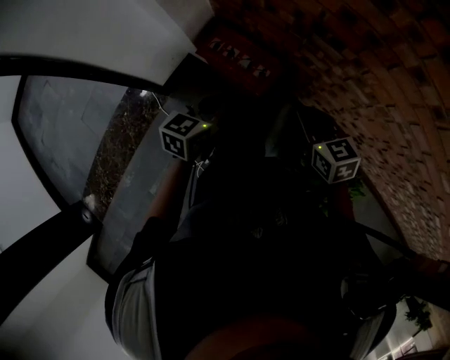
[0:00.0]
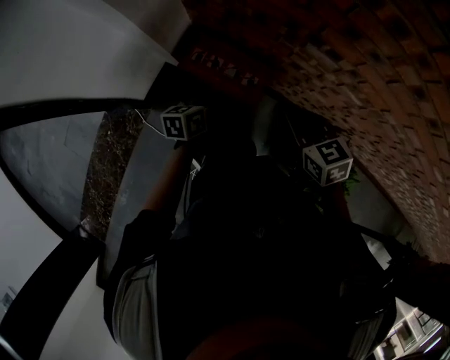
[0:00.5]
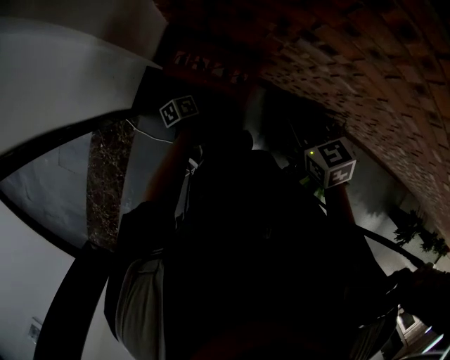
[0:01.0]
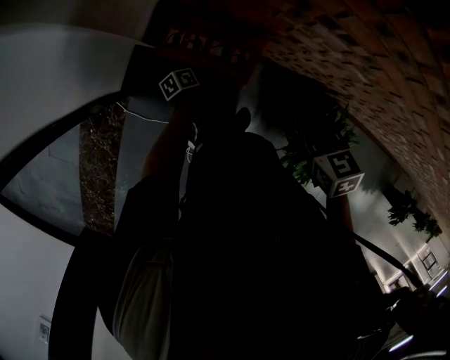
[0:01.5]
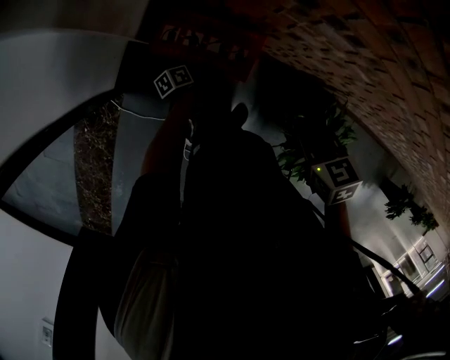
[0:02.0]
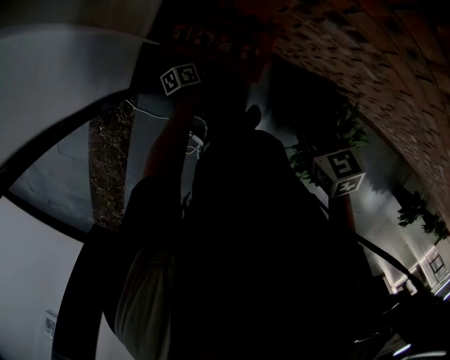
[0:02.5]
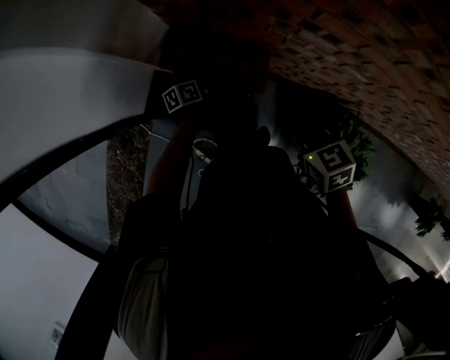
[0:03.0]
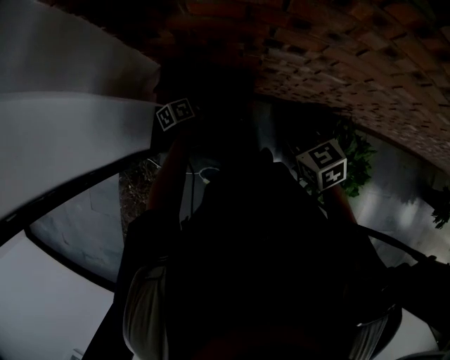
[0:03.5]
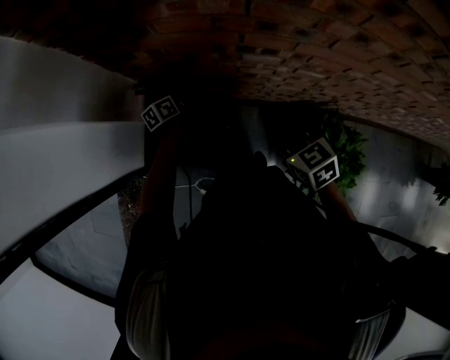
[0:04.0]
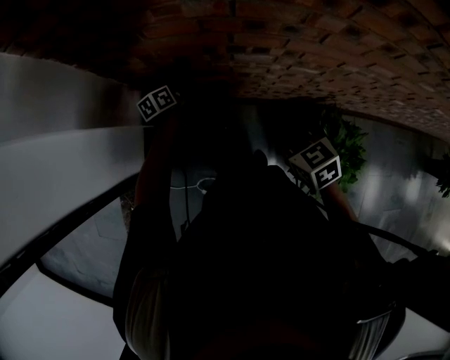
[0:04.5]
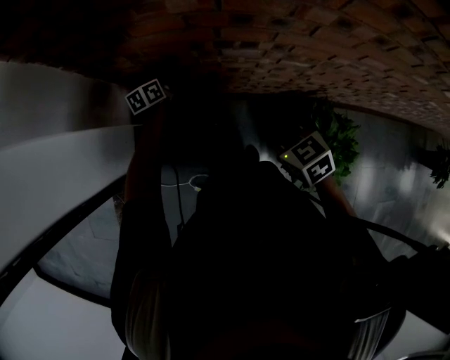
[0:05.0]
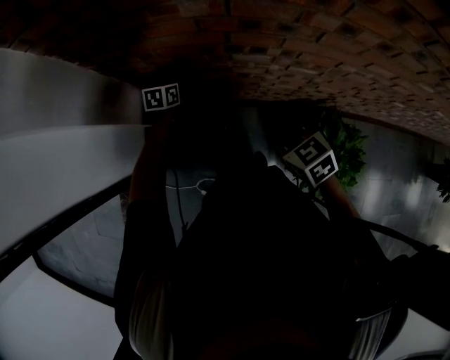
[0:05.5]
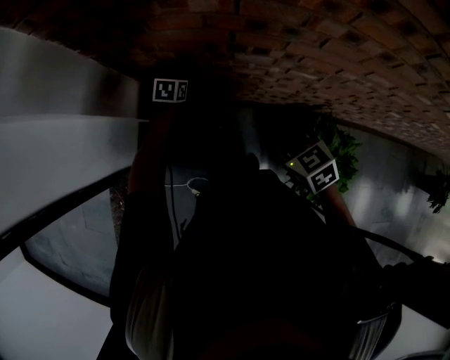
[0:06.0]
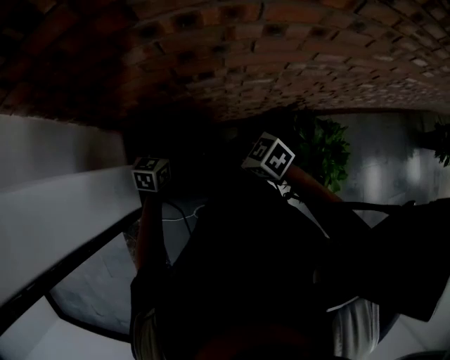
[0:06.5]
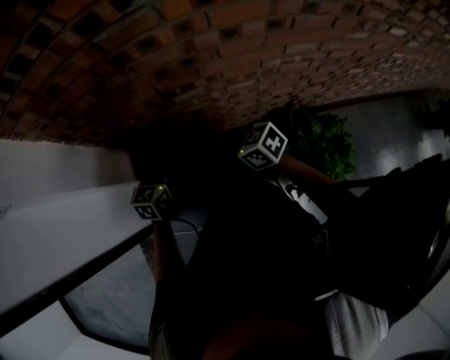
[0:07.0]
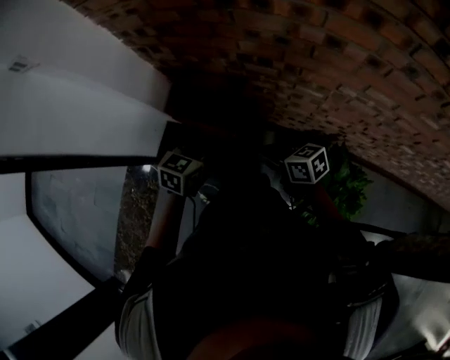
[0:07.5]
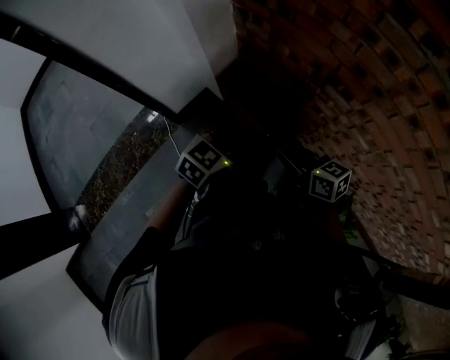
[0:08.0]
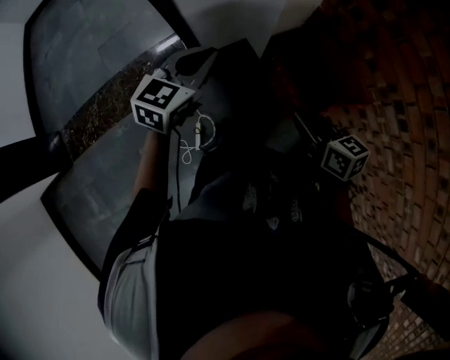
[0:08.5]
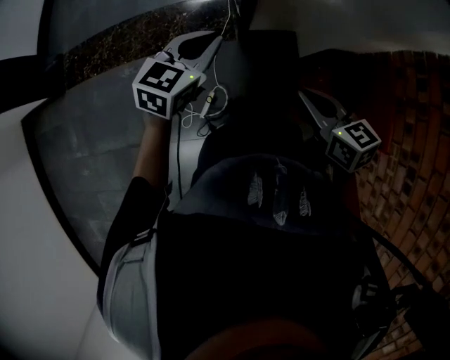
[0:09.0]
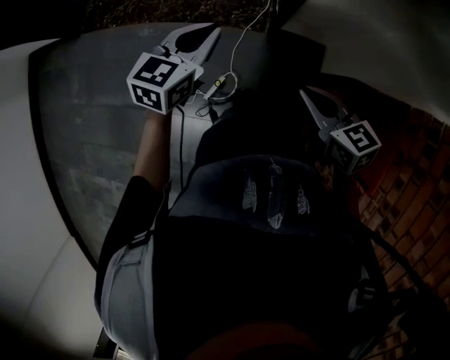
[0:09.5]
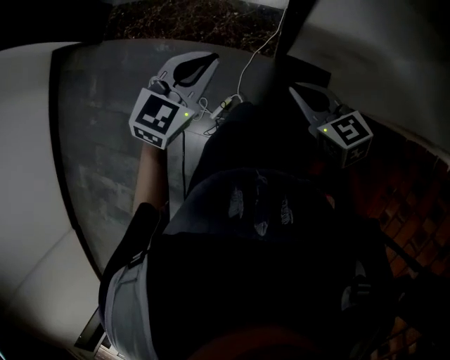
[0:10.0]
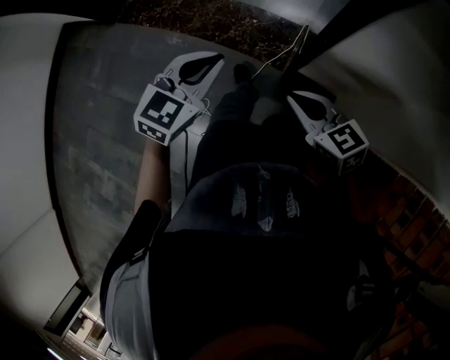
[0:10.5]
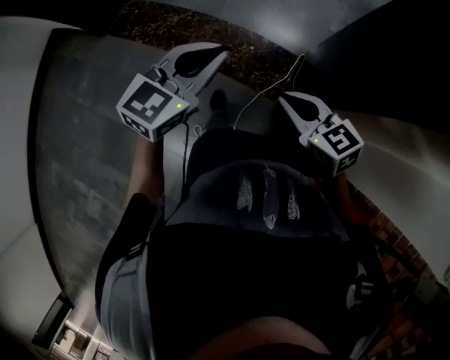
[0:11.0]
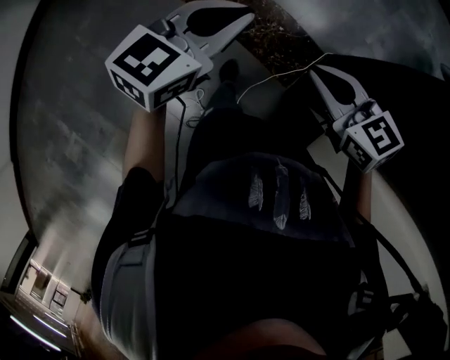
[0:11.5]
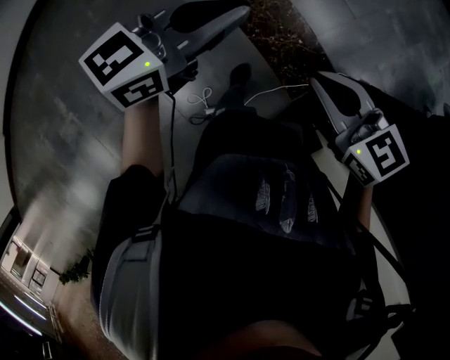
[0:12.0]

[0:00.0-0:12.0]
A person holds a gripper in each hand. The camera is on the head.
0:00.0 to 0:02.0: The left gripper heads downward, covering roughly 35 cm, rotates around the line of its fingers by about 60 degrees, counterclockwise from behind, and opens up. Meanwhile the right gripper ends up some 5 cm from where it was, and rotates some 20 degrees.
0:02.0 to 0:04.0: The right gripper changes place by some 5 cm, while the left gripper heads upward and forward, covering roughly 25 cm, and turns by some 30 degrees.
0:04.0 to 0:06.0: The left gripper twists approximately 40 degrees clockwise, seen from behind.
0:06.0 to 0:08.0: The right gripper changes place by approximately 10 cm, and rotates roughly 40 degrees. Meanwhile the left gripper shifts by about 35 cm, swivels about 30 degrees, and closes.
0:08.0 to 0:10.0: Both grippers are carried approximately 50 cm. The left gripper changes its angle by about 70 degrees. Meanwhile the right gripper changes its angle by about 70 degrees.
0:10.0 to 0:12.0: The two grippers travel together, roughly 50 cm. The right gripper turns by some 40 degrees; the left gripper swivels approximately 40 degrees.

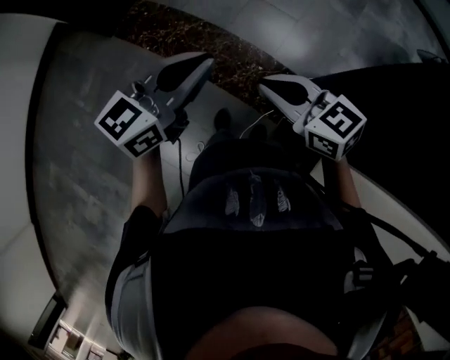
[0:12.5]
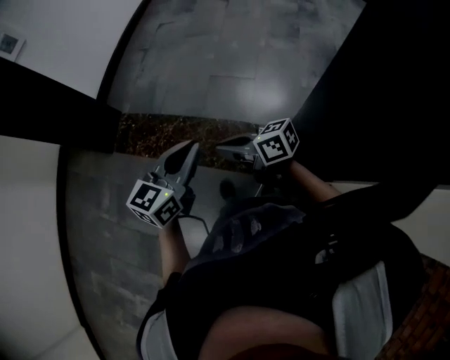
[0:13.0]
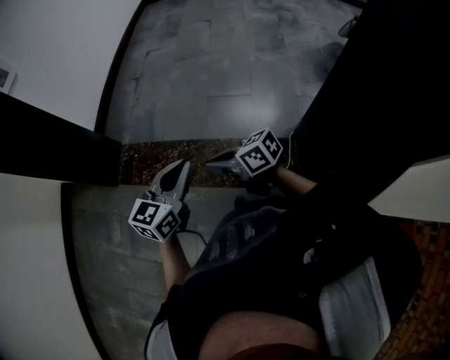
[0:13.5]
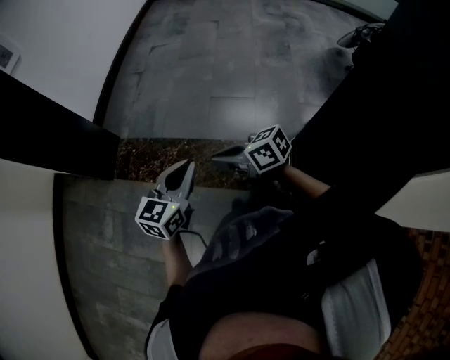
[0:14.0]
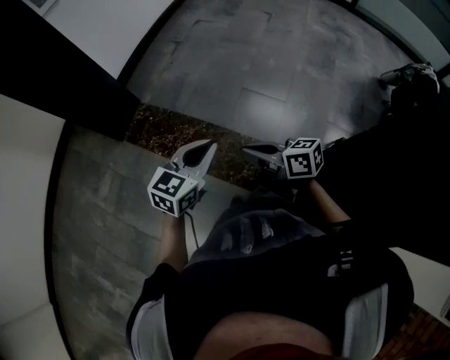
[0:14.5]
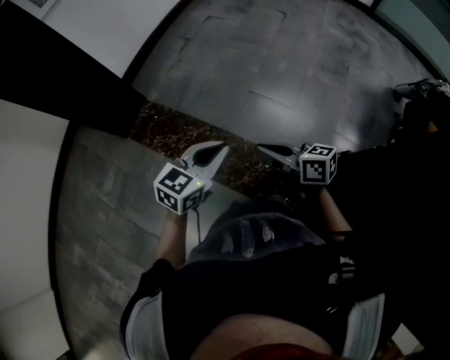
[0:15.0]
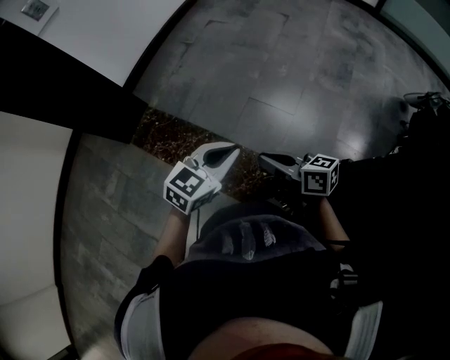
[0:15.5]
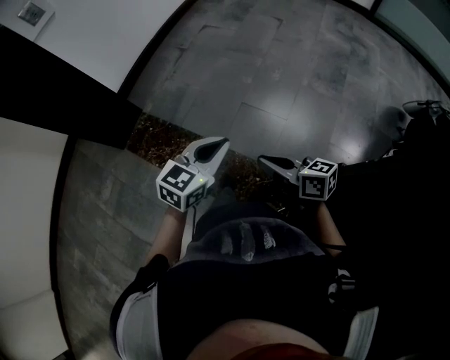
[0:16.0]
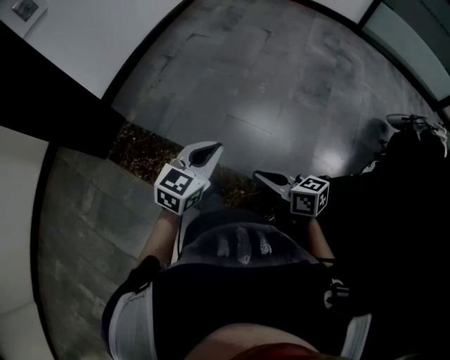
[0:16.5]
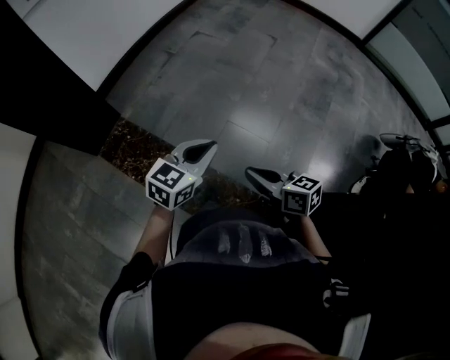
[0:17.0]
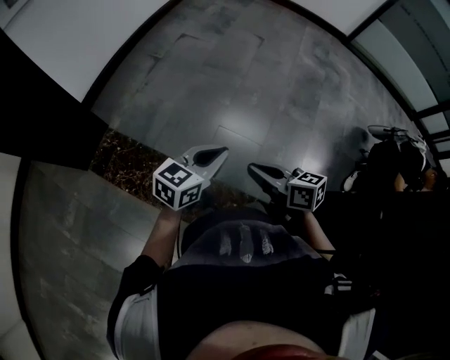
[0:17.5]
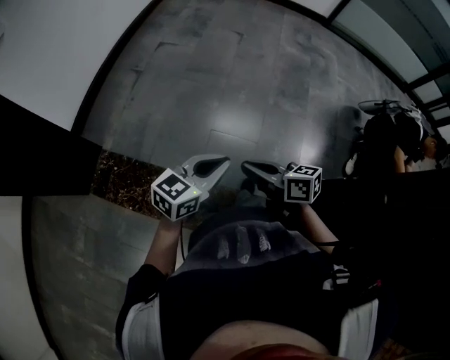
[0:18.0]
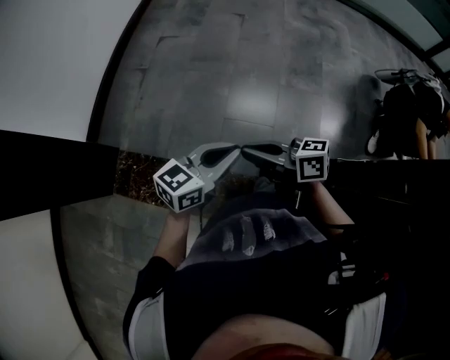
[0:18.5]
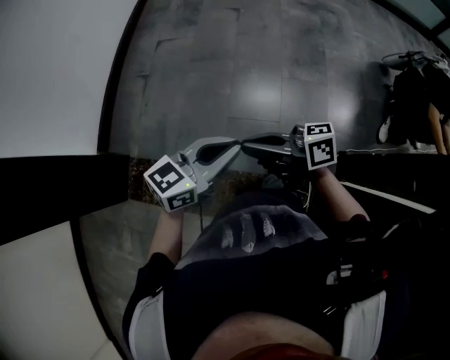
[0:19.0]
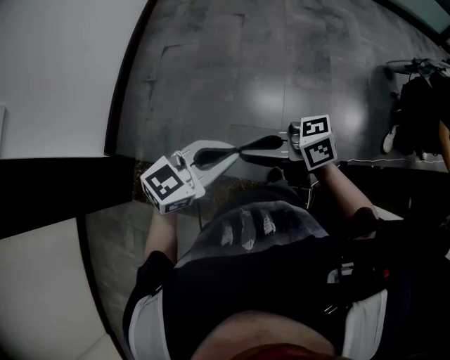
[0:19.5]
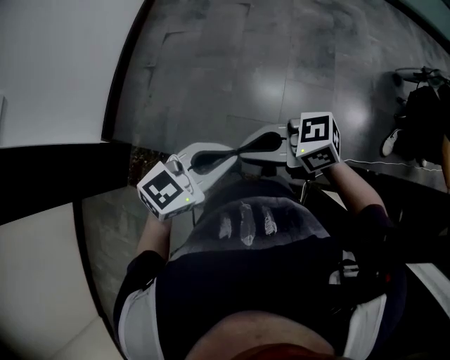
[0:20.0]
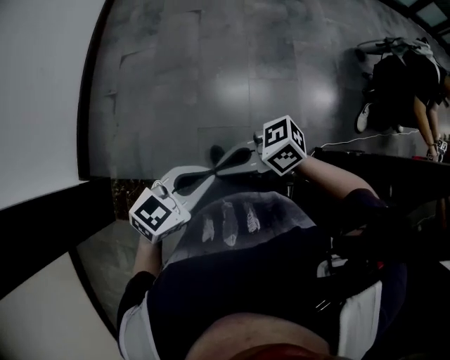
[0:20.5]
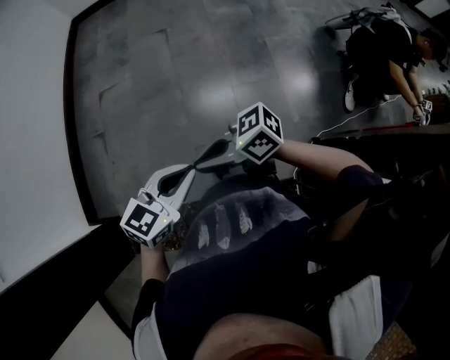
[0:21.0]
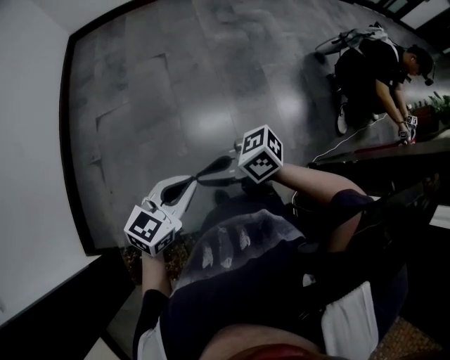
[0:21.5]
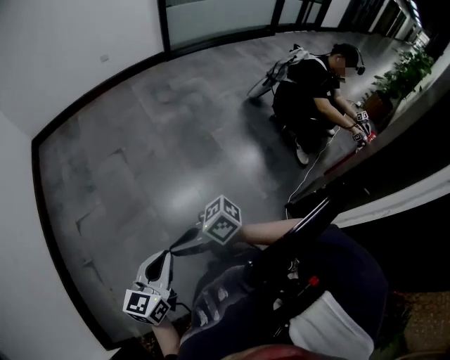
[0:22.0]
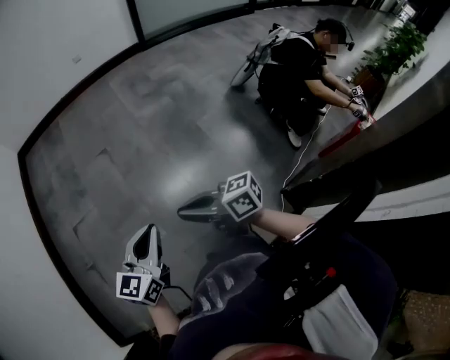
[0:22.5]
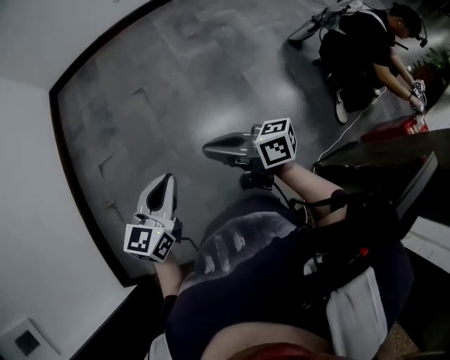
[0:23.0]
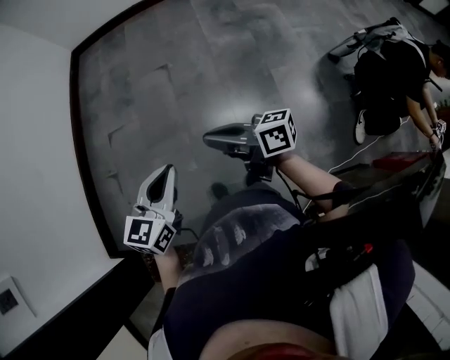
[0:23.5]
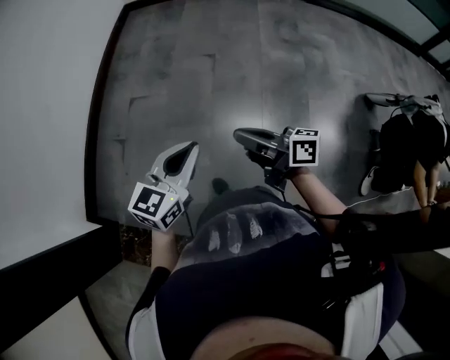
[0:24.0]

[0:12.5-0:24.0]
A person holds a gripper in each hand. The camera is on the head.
0:12.5 to 0:14.5: The right gripper is displaced forward by approximately 15 cm, and swivels some 30 degrees, while the left gripper moves forward and downward, roughly 15 cm.
0:14.5 to 0:16.5: The left gripper is displaced forward and to the right by roughly 25 cm. Meanwhile the right gripper travels to the right and forward by about 25 cm.
0:16.5 to 0:18.5: The right gripper moves about 25 cm. The left gripper ends up some 15 cm from where it was, and changes its angle by about 30 degrees.
0:18.5 to 0:20.0: The left gripper changes place by about 15 cm, and changes its angle by roughly 20 degrees. The right gripper shifts by approximately 15 cm, and rotates roughly 30 degrees.
0:20.0 to 0:22.0: The right gripper shifts by roughly 30 cm, and swivels some 30 degrees. The left gripper changes place by some 30 cm.
0:22.0 to 0:24.0: The left gripper ends up about 25 cm from where it was, and turns by about 30 degrees, while the right gripper moves about 30 cm.

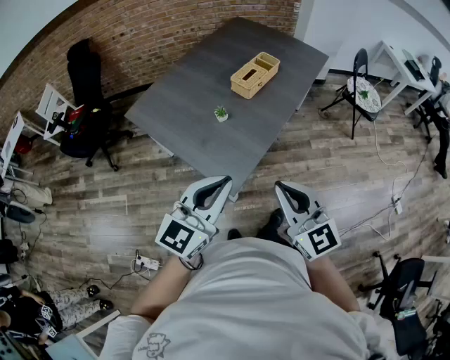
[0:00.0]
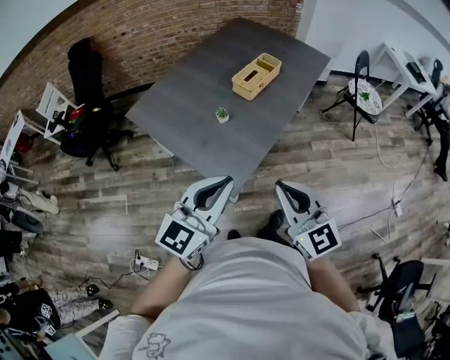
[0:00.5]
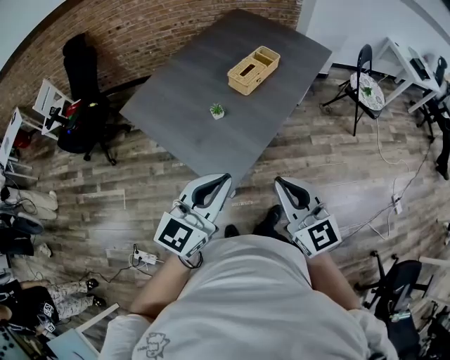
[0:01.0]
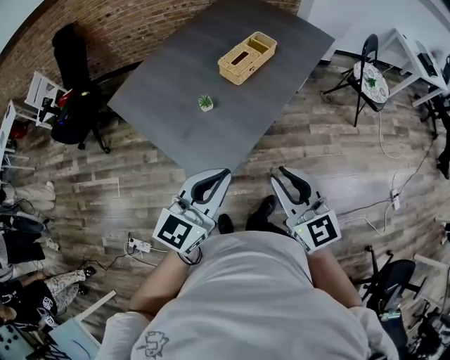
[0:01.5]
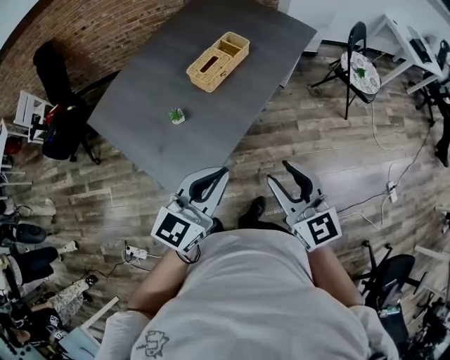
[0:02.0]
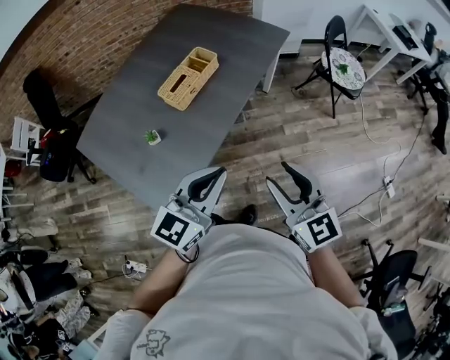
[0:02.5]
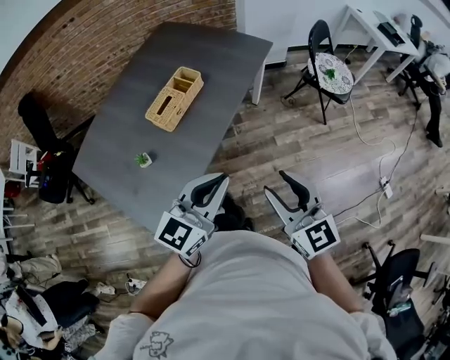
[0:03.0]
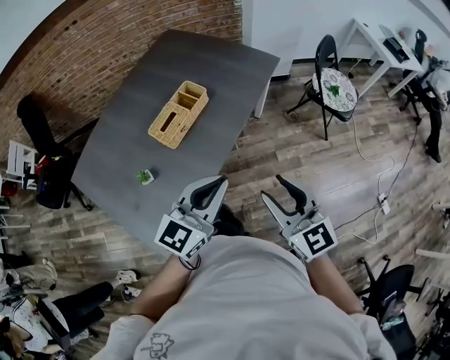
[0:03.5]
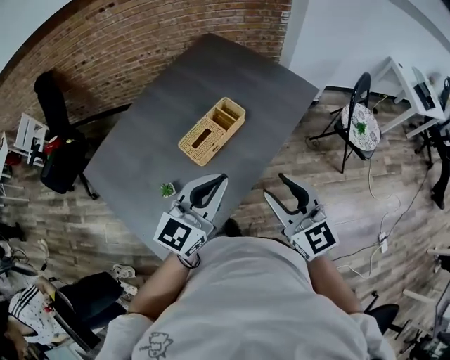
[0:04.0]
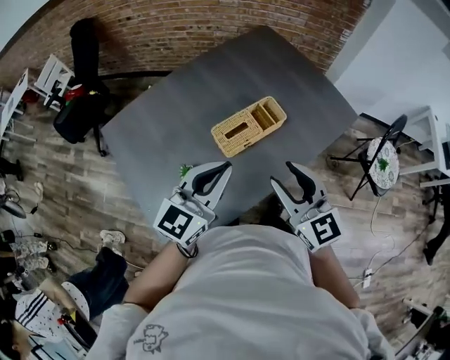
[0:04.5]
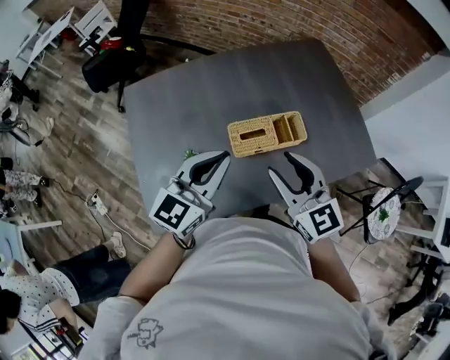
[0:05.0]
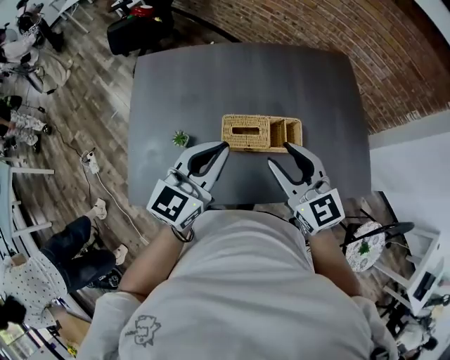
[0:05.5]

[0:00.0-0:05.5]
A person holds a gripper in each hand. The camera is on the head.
0:00.0 to 0:02.0: The two grippers go approximately 20 cm forward and to the right. The right gripper opens up.
0:02.0 to 0:03.5: The two grippers go about 20 cm forward and to the right.
0:03.5 to 0:05.5: The left gripper moves some 30 cm, and changes its angle by roughly 60 degrees; the right gripper shifts by about 40 cm, and turns by about 60 degrees.
